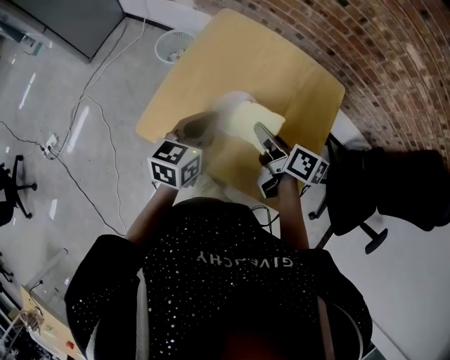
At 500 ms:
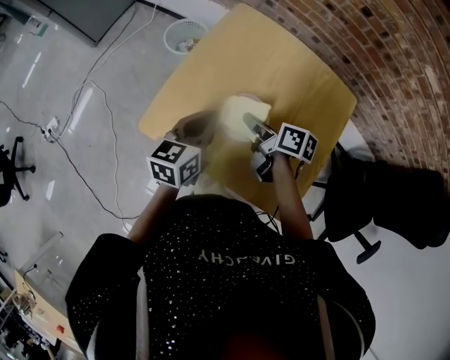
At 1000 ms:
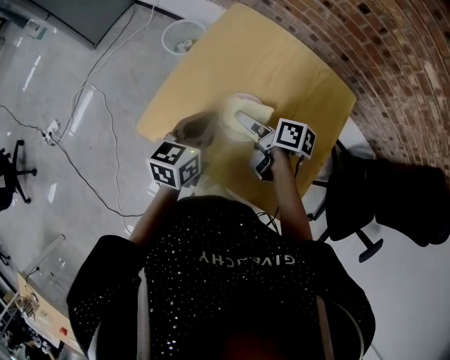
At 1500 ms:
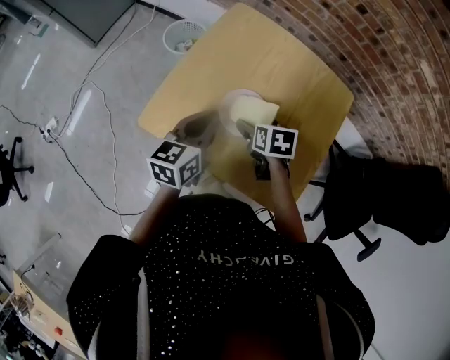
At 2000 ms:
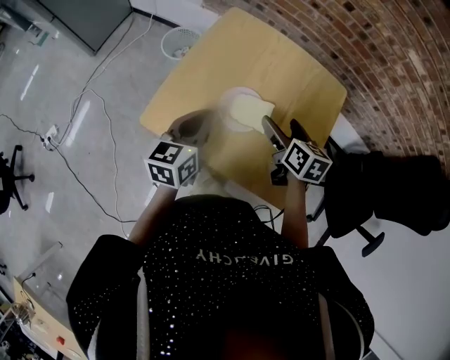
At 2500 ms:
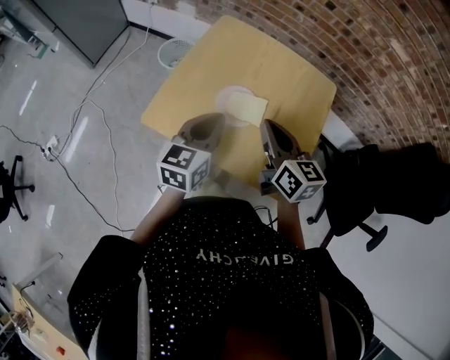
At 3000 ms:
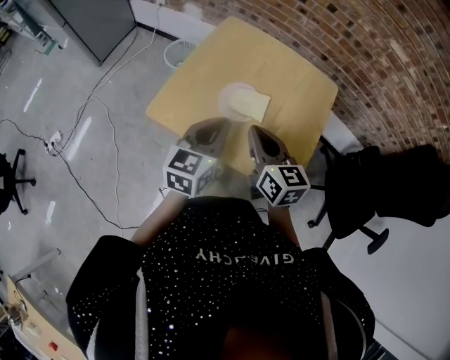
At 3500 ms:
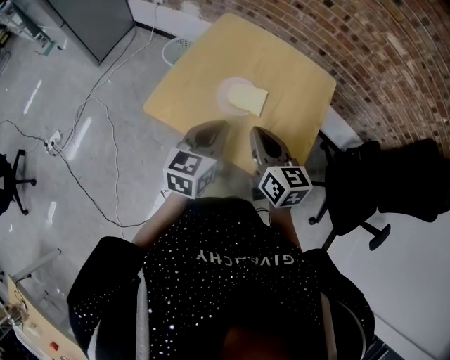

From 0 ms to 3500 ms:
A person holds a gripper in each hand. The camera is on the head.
From 0 ms to 2000 ms: The right gripper reaches approximately 10 cm downward, then returns, rotates some 30 degrees, and opens up.
From 2000 ms to 3500 ms: The left gripper is displaced backward and to the right by approximately 10 cm; the right gripper is displaced backward and upward by some 15 cm, rotates roughly 20 degrees, and closes.

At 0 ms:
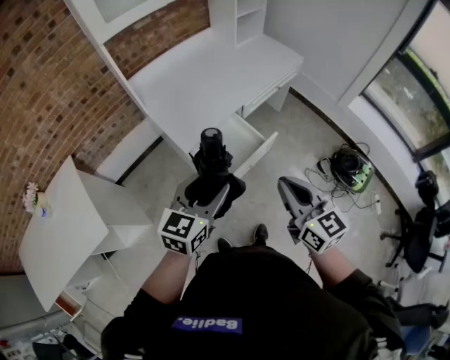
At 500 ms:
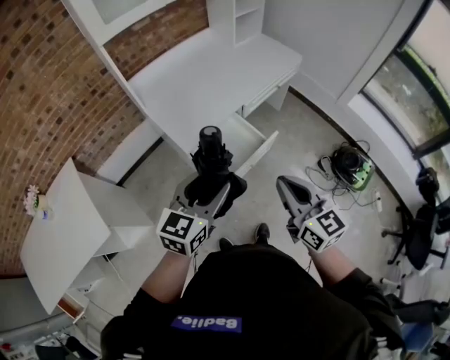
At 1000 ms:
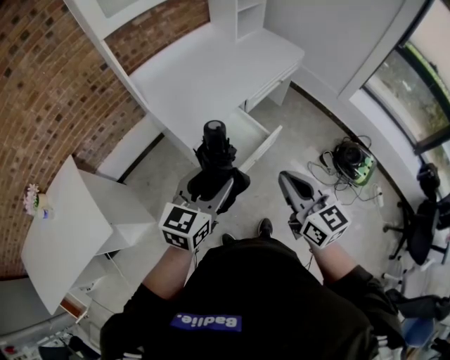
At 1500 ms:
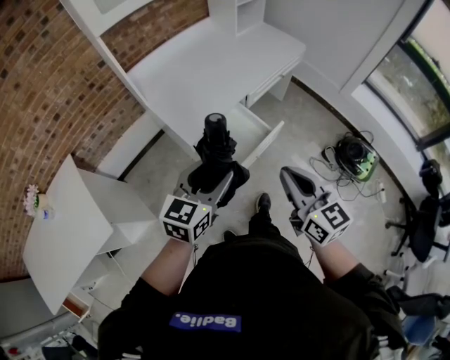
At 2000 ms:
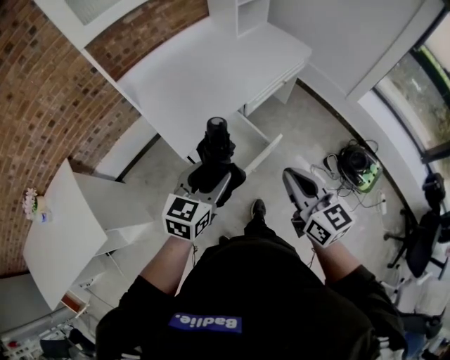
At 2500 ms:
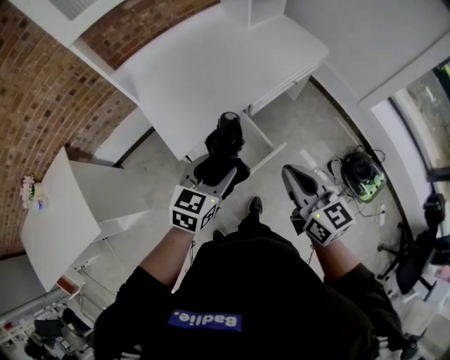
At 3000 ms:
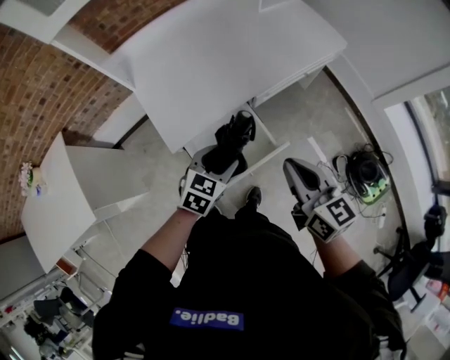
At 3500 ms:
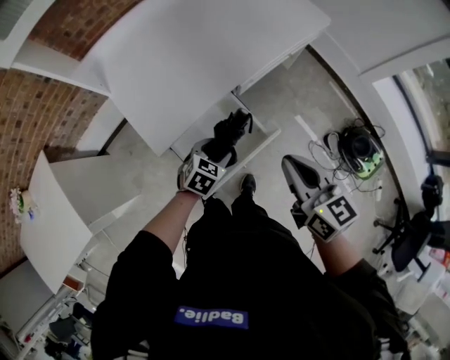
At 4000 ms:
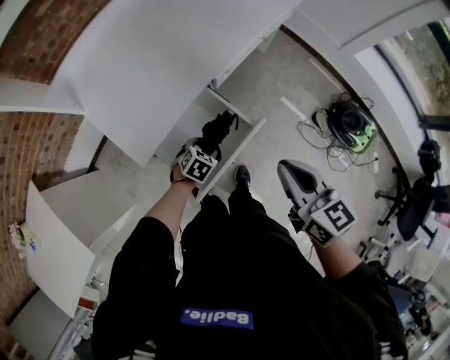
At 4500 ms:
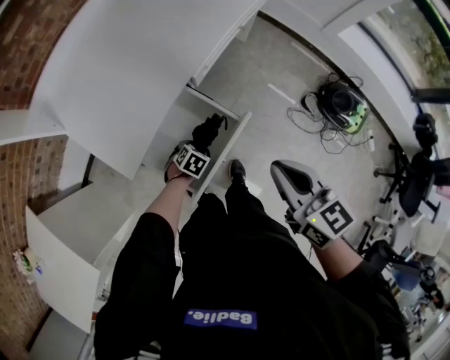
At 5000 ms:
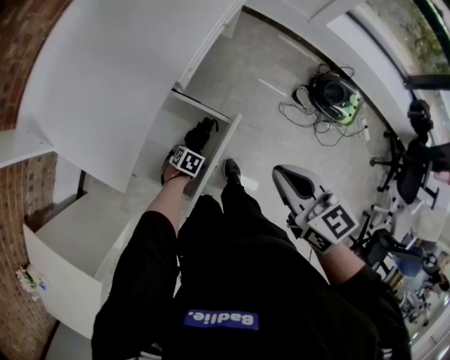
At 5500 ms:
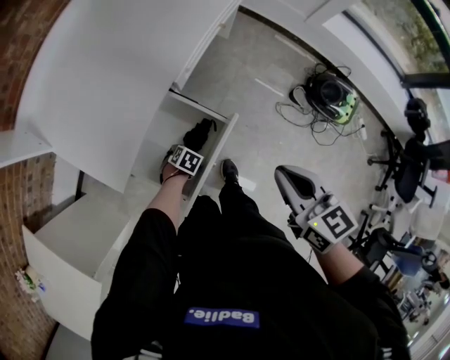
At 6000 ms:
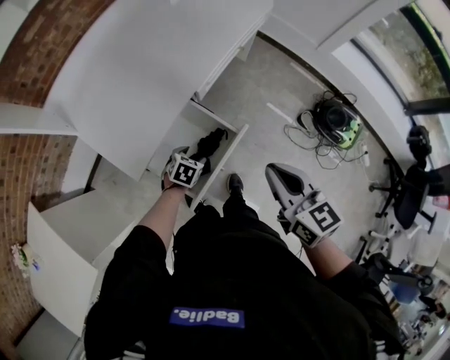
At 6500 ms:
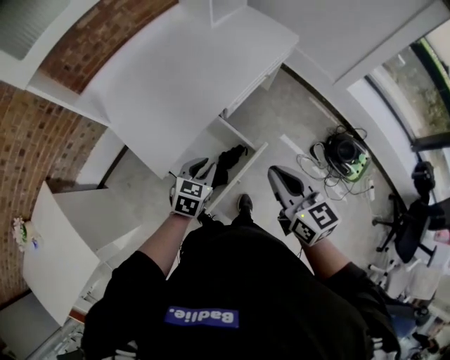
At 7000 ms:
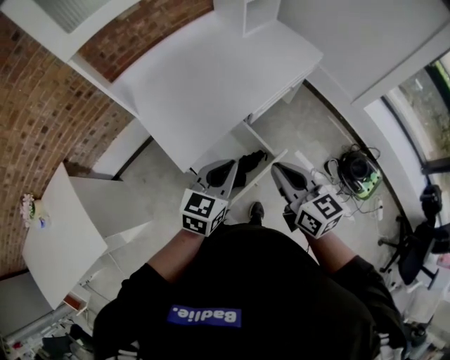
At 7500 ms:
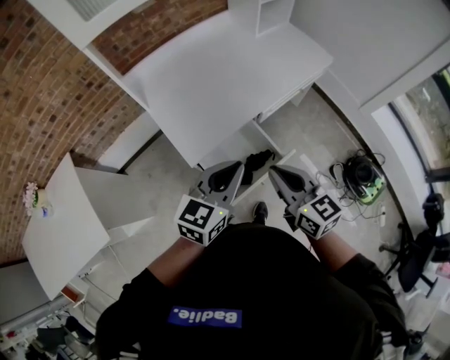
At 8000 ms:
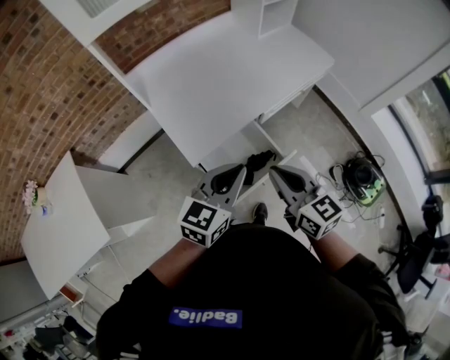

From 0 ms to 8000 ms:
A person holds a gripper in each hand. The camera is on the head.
From 0 ms to 2000 ms: The left gripper goes about 10 cm forward and downward, while the right gripper moves forward, approximately 10 cm.
From 2000 ms to 4000 ms: The right gripper heads forward and downward, covering about 15 cm. Meanwhile the left gripper shifts approximately 35 cm downward, and angles its fingers downward, by roughly 40 degrees.
From 4000 ms to 6000 ms: The left gripper goes downward and returns, about 10 cm each way.
From 6000 ms to 8000 ms: The left gripper shifts roughly 40 cm upward, tilts its fingers roughly 50 degrees upward, and closes; the right gripper heads to the left and upward, covering about 15 cm, and changes its angle by approximately 20 degrees.

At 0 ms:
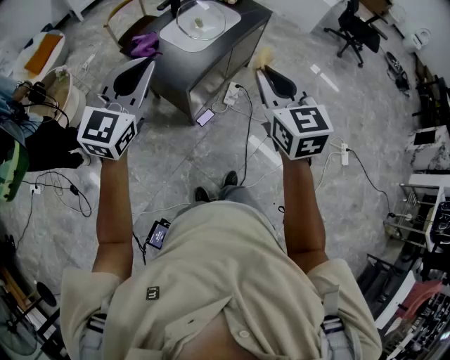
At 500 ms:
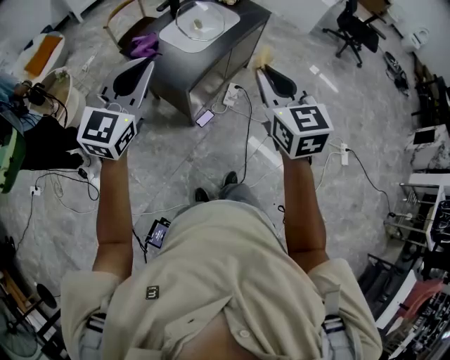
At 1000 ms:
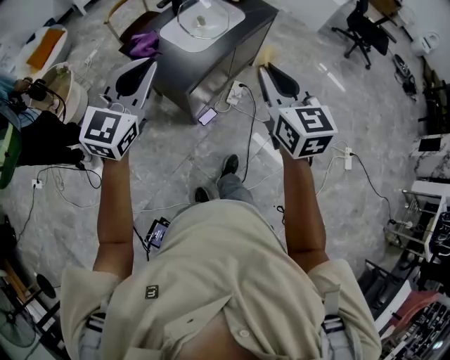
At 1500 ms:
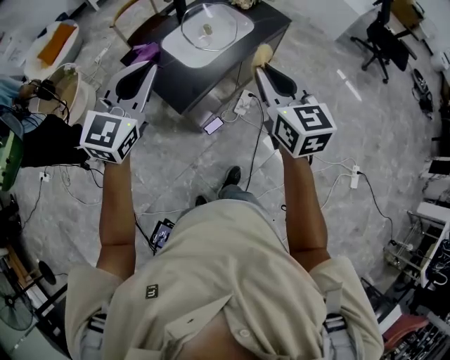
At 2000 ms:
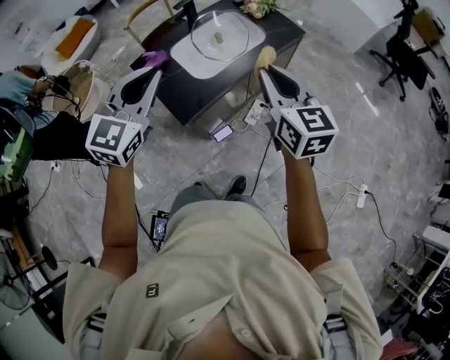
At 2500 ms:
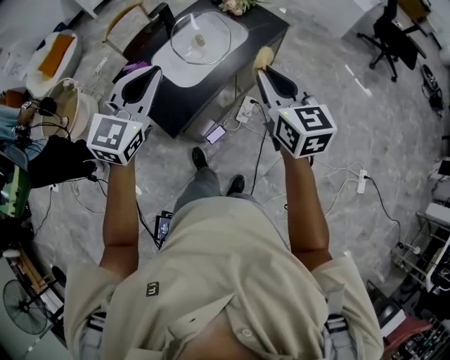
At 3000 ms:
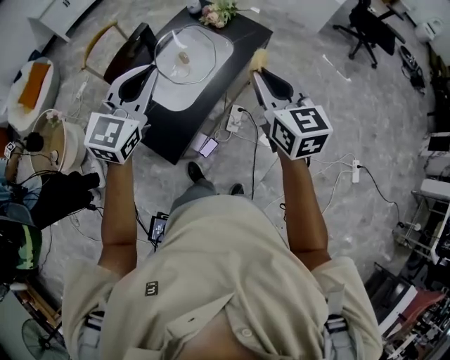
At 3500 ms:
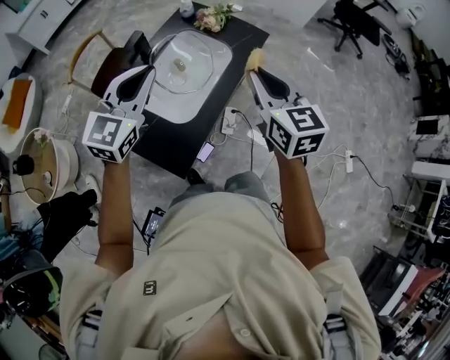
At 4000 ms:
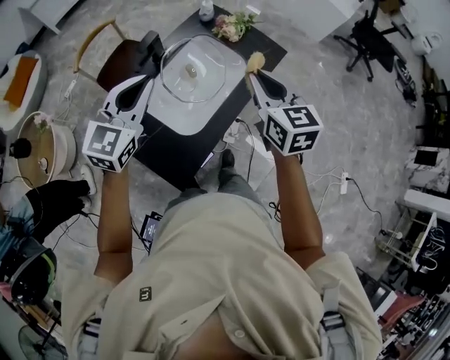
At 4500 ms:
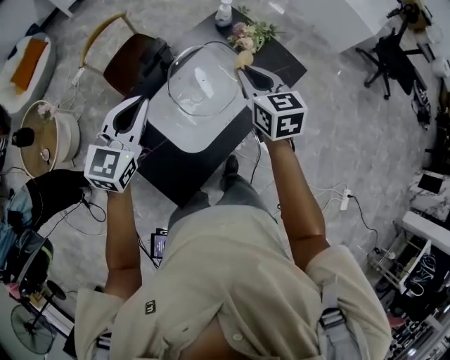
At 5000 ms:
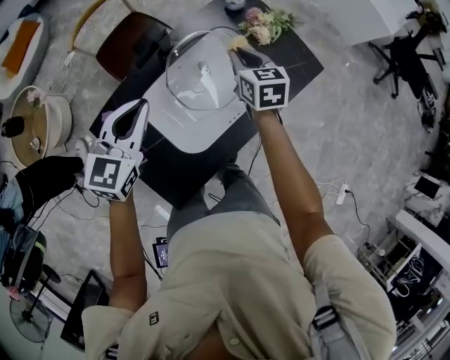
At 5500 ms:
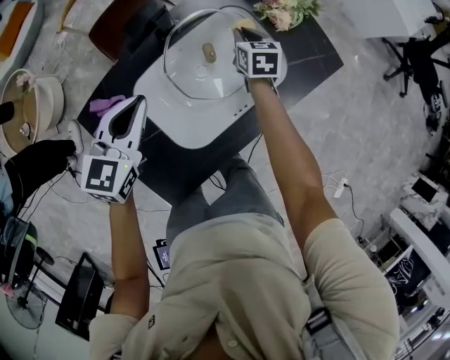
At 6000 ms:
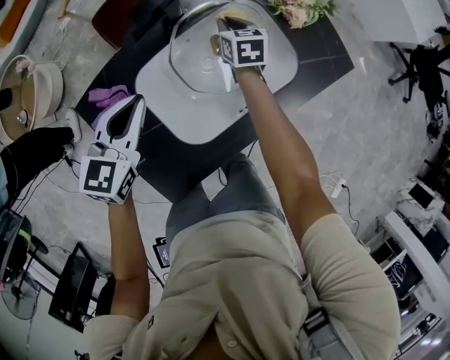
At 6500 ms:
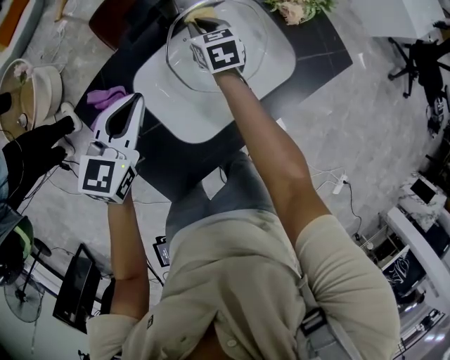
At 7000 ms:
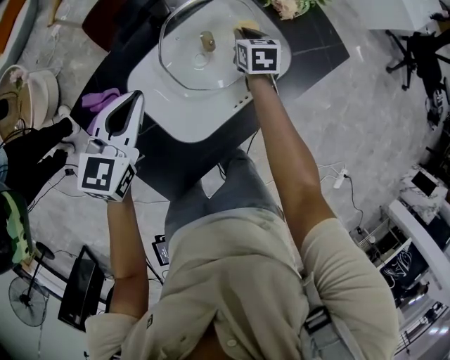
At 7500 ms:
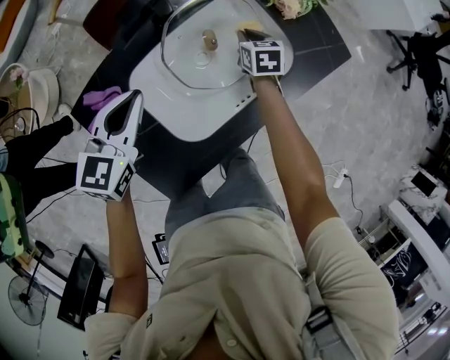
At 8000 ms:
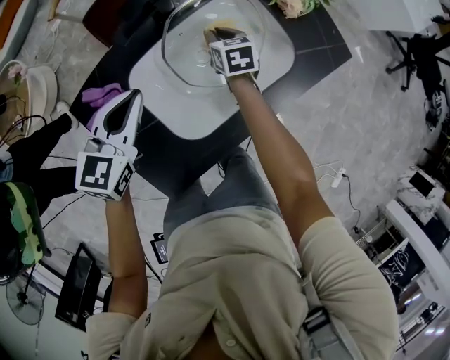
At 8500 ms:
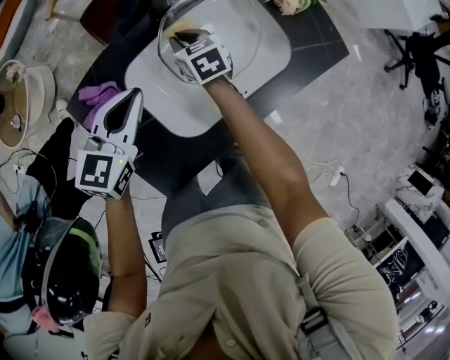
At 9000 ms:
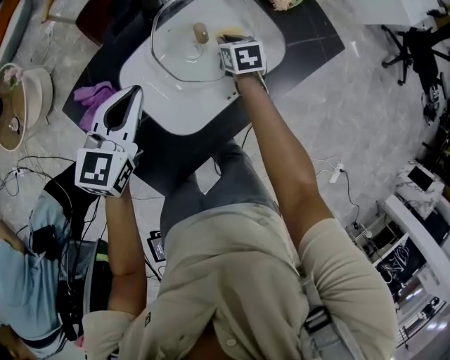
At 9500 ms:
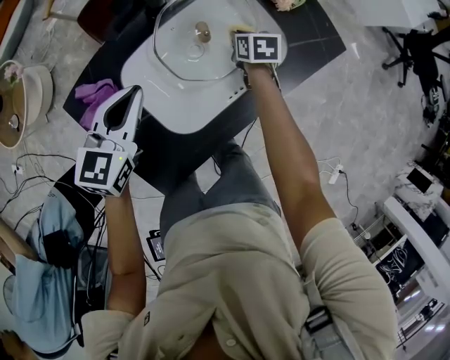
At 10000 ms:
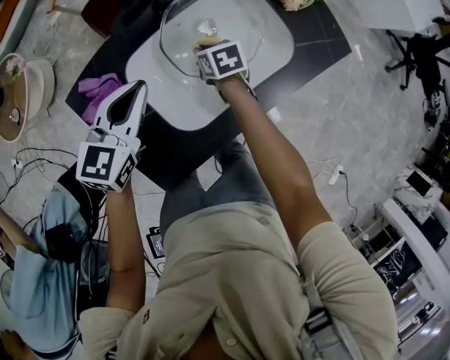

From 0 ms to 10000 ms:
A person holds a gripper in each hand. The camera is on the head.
From 0 ms to 2000 ms: The right gripper shifts roughly 25 cm forward; the left gripper travels forward and to the right by approximately 20 cm.
From 2000 ms to 4000 ms: Both grippers move forward, roughly 25 cm.
From 4000 ms to 6000 ms: The left gripper is displaced downward by roughly 20 cm, and changes its angle by some 30 degrees. Meanwhile the right gripper moves downward and forward, roughly 50 cm, and swivels approximately 30 degrees.
From 6000 ms to 8000 ms: The right gripper swings left and right, some 15 cm each way, with 2 reversals.
From 8000 ms to 10000 ms: The right gripper moves left and right over approximately 20 cm, changing direction 2 times.

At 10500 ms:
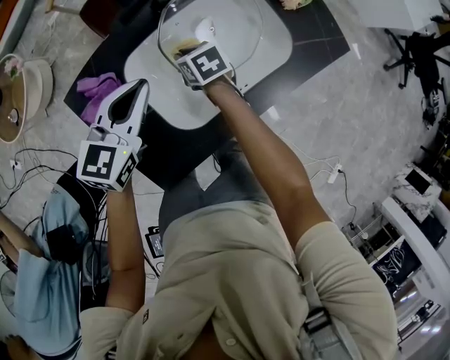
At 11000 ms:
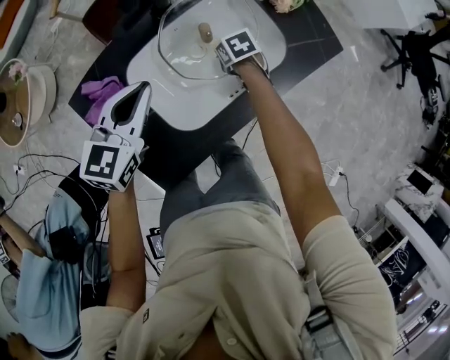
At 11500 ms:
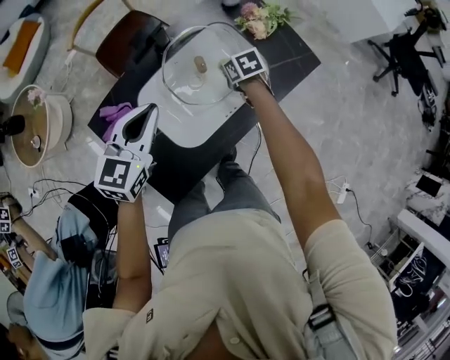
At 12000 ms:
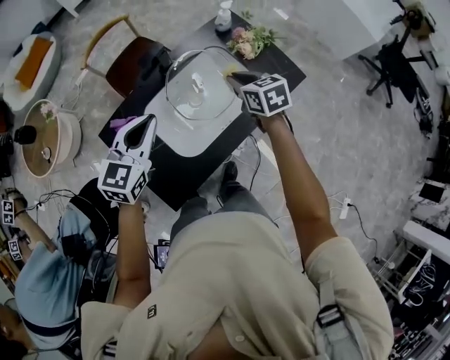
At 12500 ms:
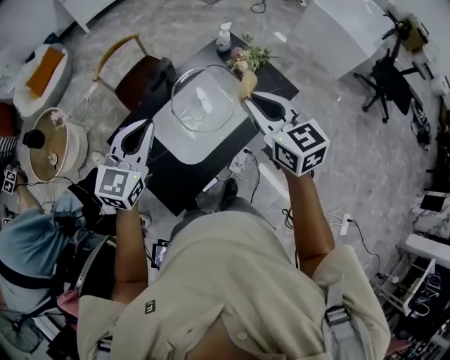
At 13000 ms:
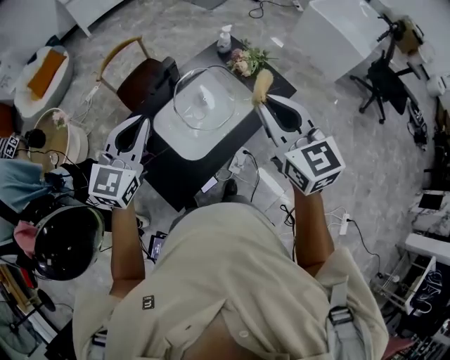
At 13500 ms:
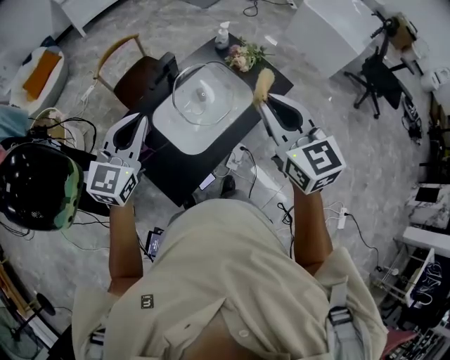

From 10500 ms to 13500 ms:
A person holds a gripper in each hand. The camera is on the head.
From 10500 ms to 12000 ms: The right gripper heads upward and to the right, covering some 30 cm, and rotates some 20 degrees; the left gripper goes some 15 cm upward and backward.
From 12000 ms to 13500 ms: The right gripper travels upward and backward by approximately 35 cm, and rotates about 30 degrees, while the left gripper moves upward and backward, approximately 15 cm.

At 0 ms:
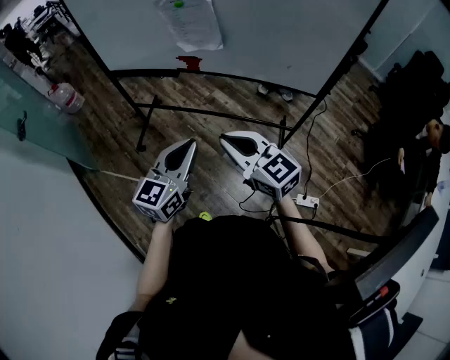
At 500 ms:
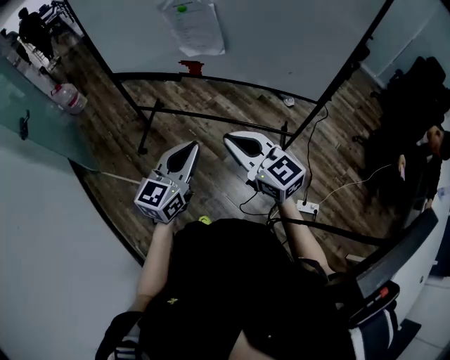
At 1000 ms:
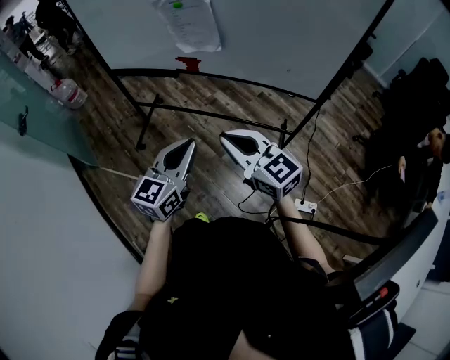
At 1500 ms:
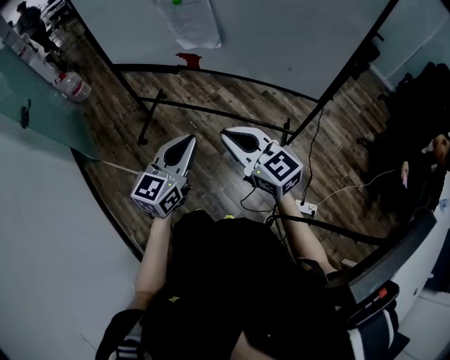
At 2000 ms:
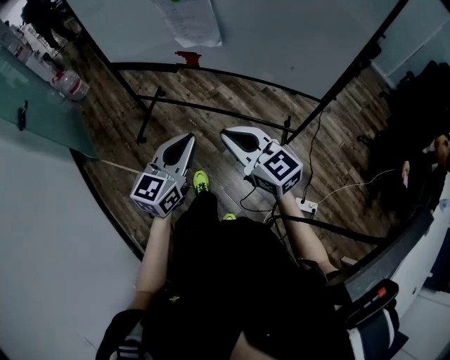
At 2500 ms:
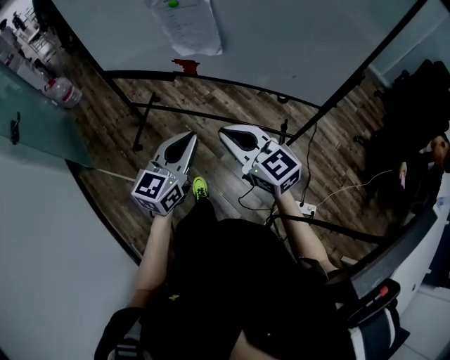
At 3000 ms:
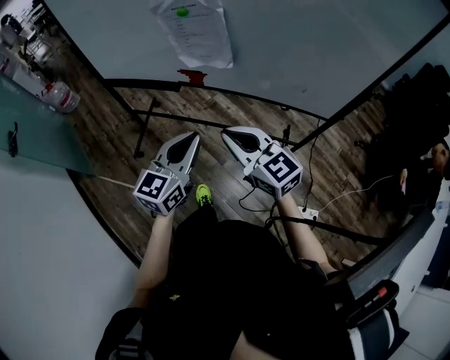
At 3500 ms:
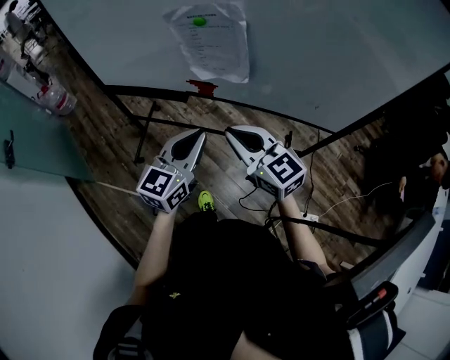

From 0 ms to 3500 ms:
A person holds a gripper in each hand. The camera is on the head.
From 0 ms to 2000 ms: The right gripper ends up roughly 5 cm from where it was.
From 2000 ms to 3500 ms: The two grippers go about 20 cm forward.
